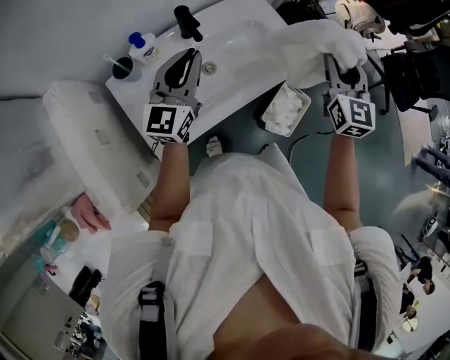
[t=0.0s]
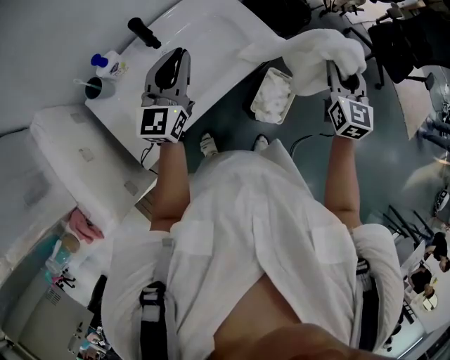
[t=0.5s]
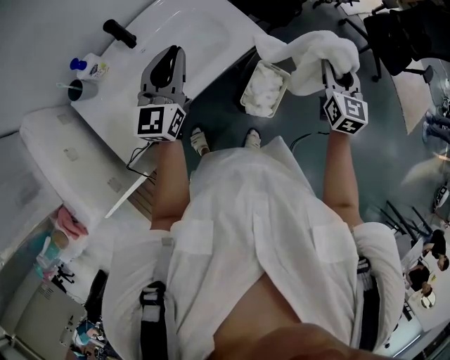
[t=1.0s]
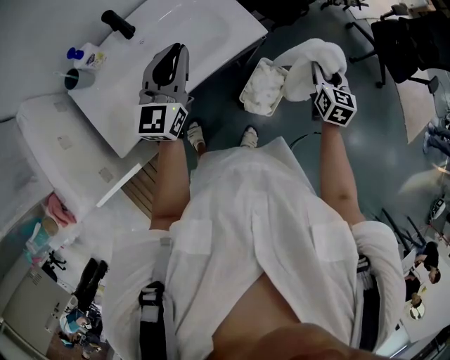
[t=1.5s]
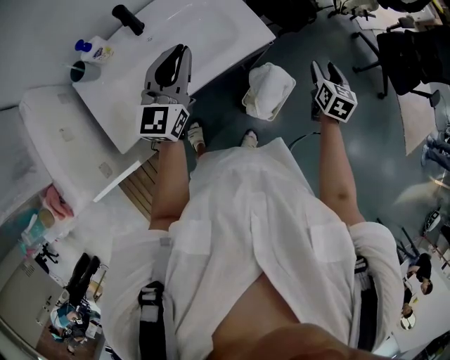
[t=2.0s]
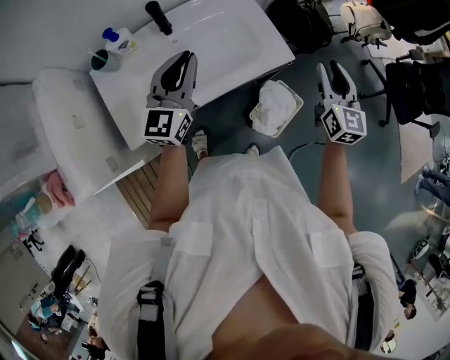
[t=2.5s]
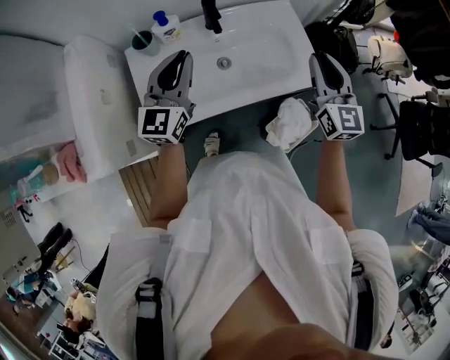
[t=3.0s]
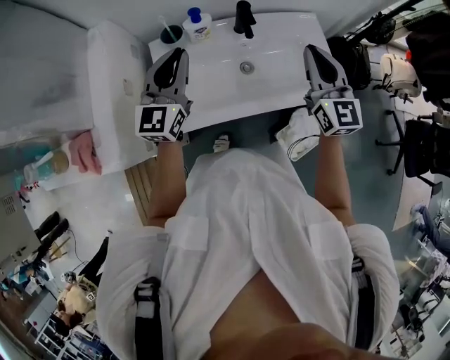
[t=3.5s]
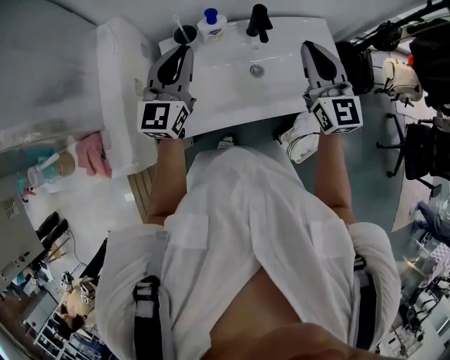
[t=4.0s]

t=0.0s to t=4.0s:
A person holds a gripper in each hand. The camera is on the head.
t=0.0s to t=2.0s: The right gripper heads to the right and downward, covering some 30 cm, and turns by some 40 degrees; the left gripper is displaced to the right by roughly 15 cm.
t=2.0s to t=4.0s: The right gripper changes place by approximately 50 cm, tilts its fingers about 40 degrees upward, and closes its fingers, while the left gripper moves about 35 cm, and rotates some 20 degrees.

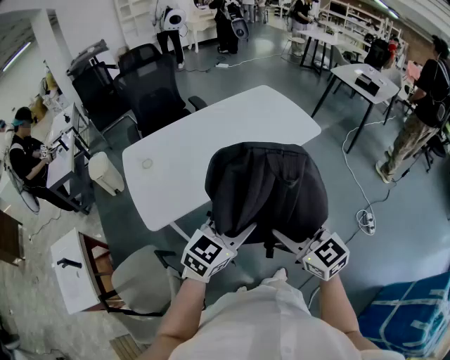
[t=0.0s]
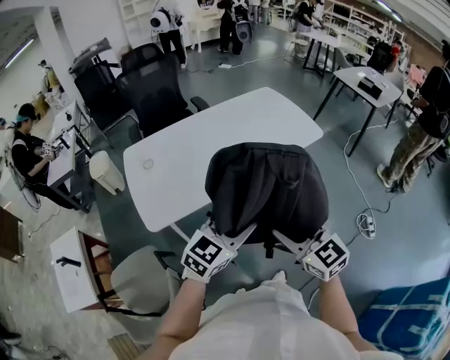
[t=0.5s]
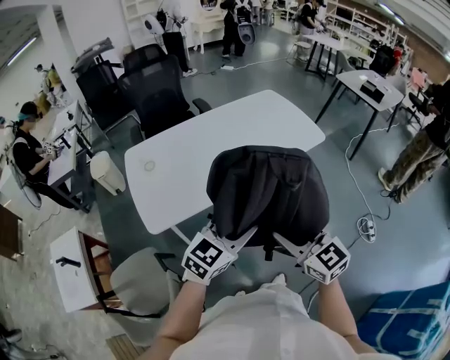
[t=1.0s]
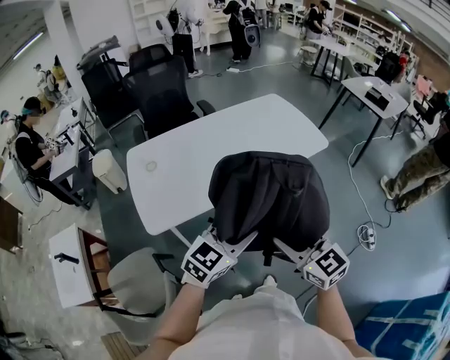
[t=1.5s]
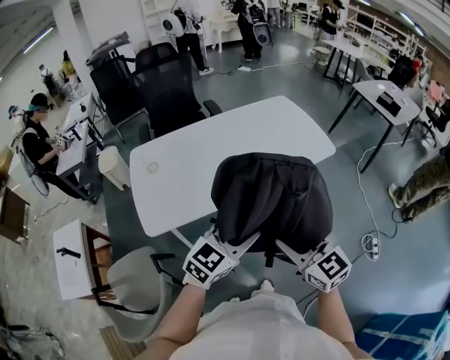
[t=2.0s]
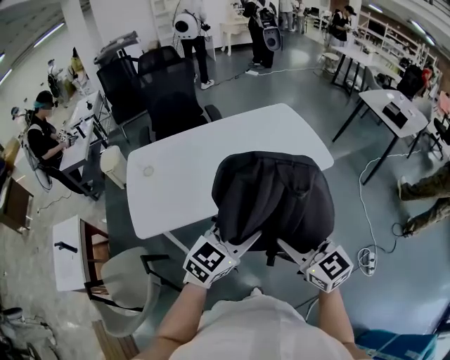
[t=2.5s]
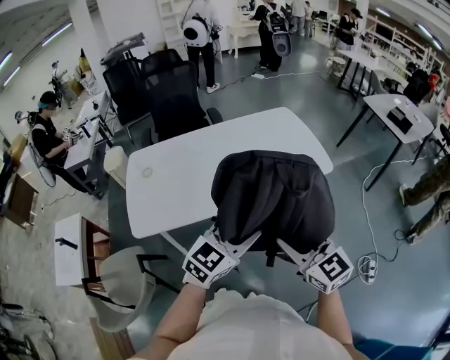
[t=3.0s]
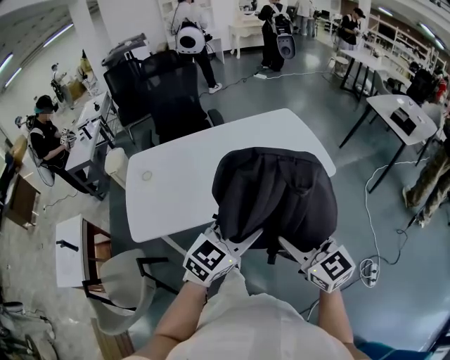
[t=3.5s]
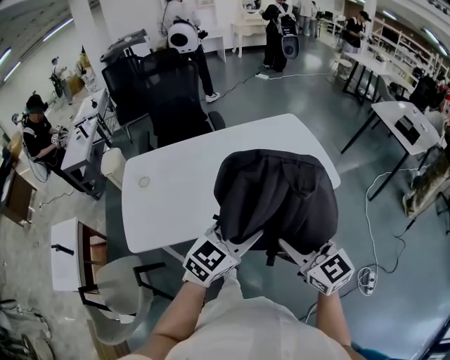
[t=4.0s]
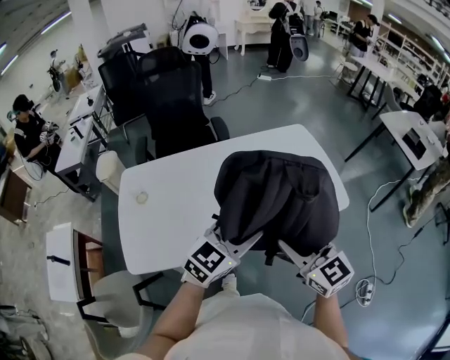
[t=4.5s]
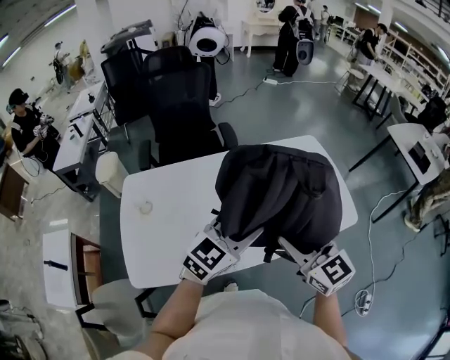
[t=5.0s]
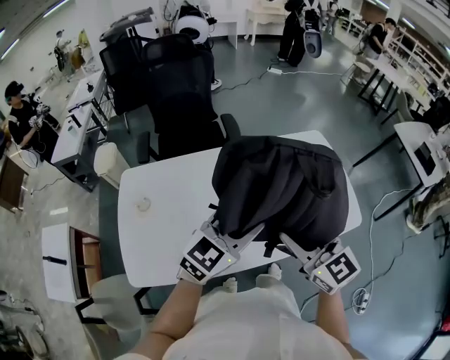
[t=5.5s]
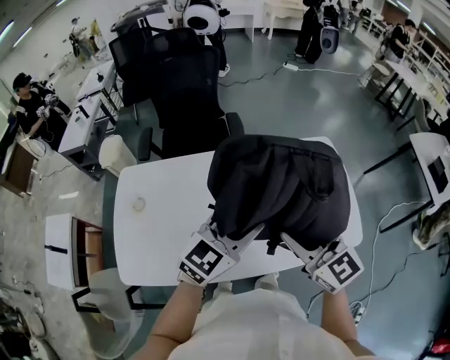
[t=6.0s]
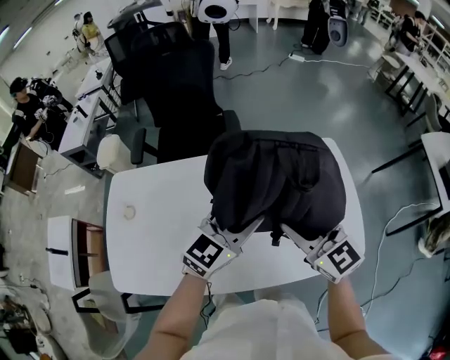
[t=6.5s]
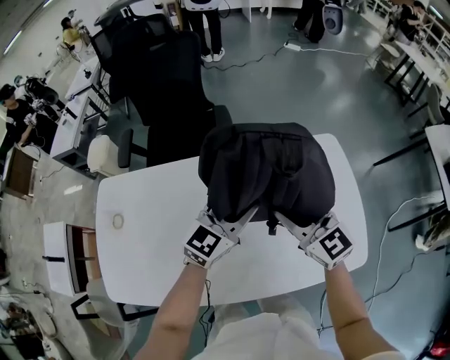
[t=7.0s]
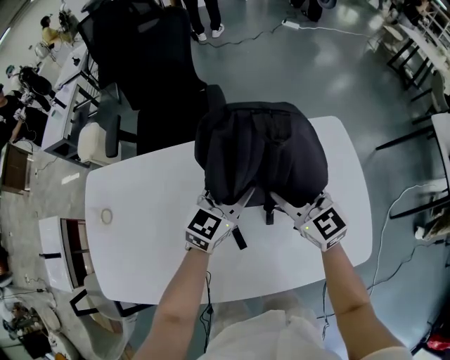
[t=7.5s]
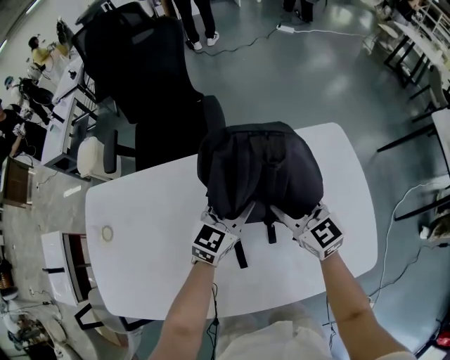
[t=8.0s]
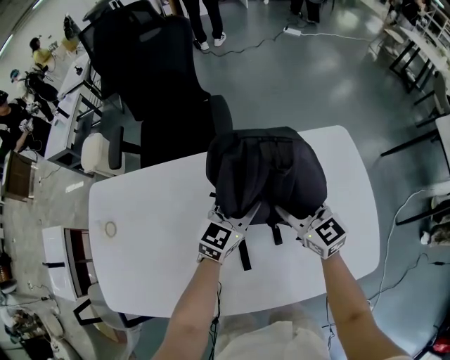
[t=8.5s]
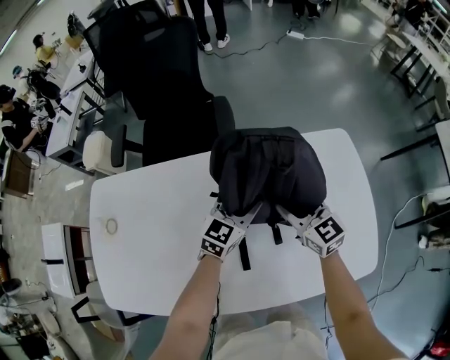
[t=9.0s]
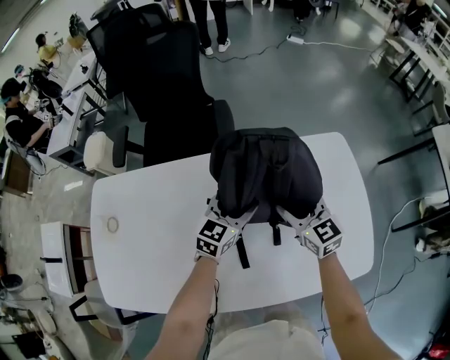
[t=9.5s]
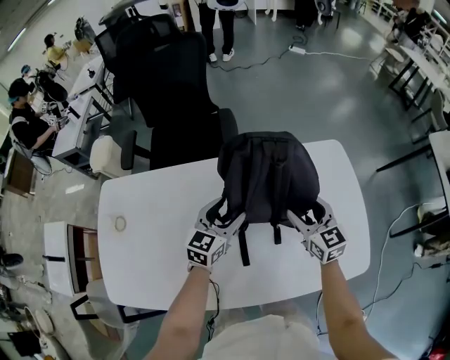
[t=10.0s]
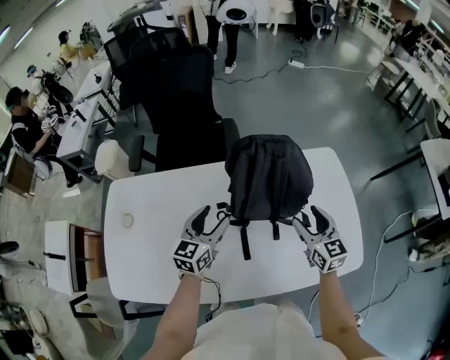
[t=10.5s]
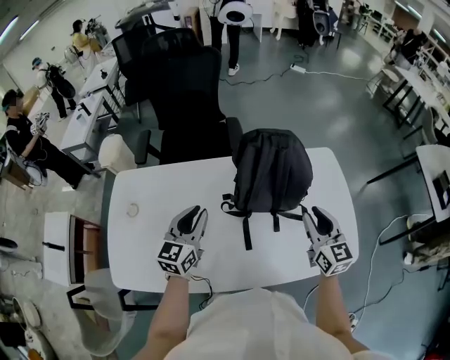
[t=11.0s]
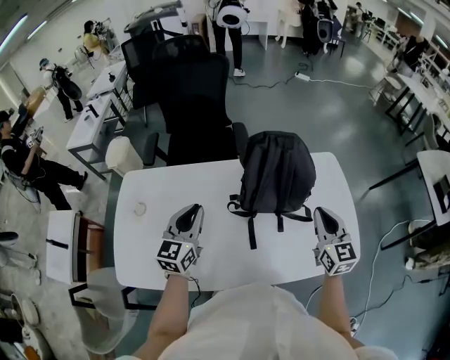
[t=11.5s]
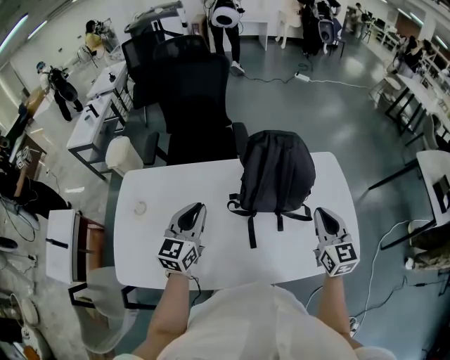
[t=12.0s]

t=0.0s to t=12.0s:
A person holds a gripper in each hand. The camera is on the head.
t=0.0s to t=2.0s: The two grippers go roughly 5 cm forward.
t=2.0s to t=4.0s: Both grippers move forward and to the right, some 20 cm.
t=4.0s to t=6.0s: The grippers both shift forward by approximately 30 cm.
t=6.0s to t=8.0s: The left gripper moves downward and forward, approximately 30 cm, while the right gripper heads forward and downward, covering approximately 30 cm.
t=8.0s to t=10.0s: The left gripper travels to the left by roughly 5 cm, and opens its fingers.
t=10.0s to t=12.0s: The right gripper shifts some 15 cm upward and backward, and closes. Meanwhile the left gripper goes some 20 cm to the left, upward and backward, and closes.

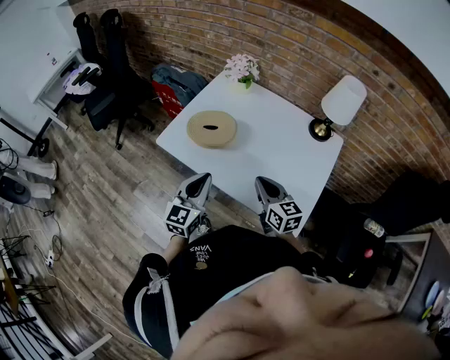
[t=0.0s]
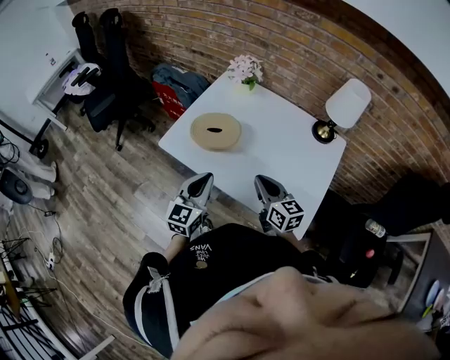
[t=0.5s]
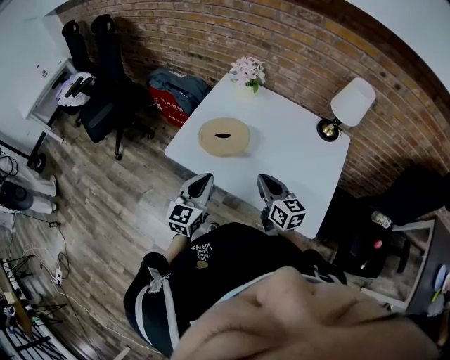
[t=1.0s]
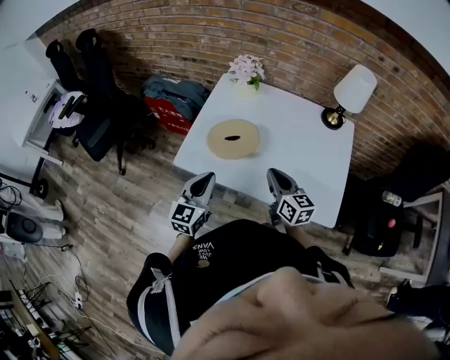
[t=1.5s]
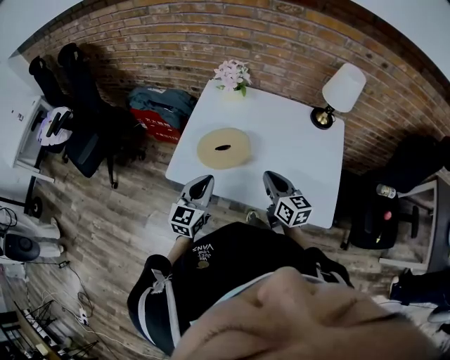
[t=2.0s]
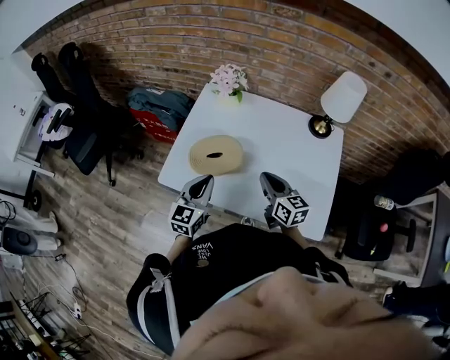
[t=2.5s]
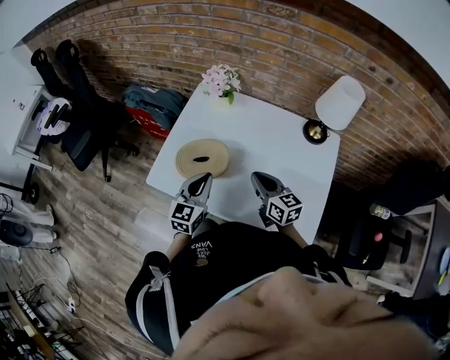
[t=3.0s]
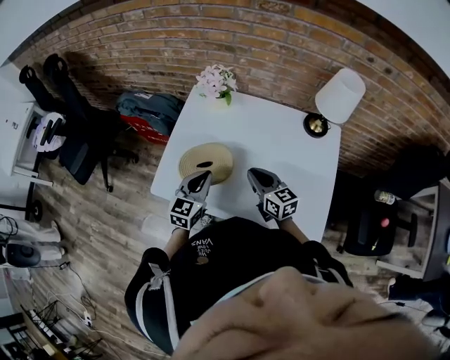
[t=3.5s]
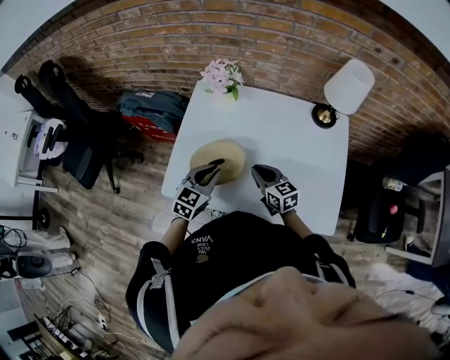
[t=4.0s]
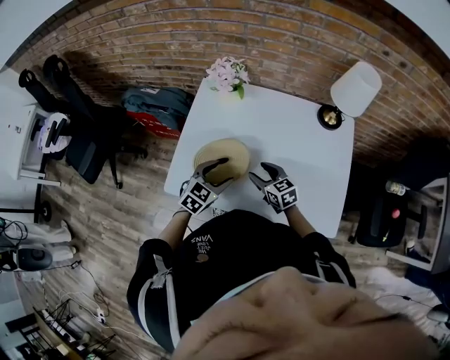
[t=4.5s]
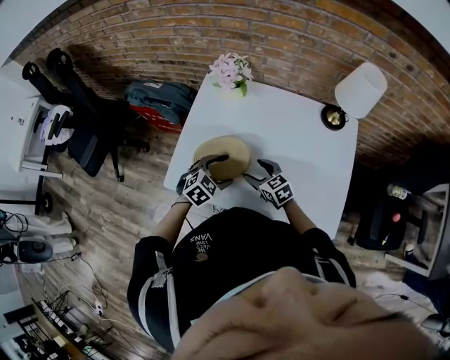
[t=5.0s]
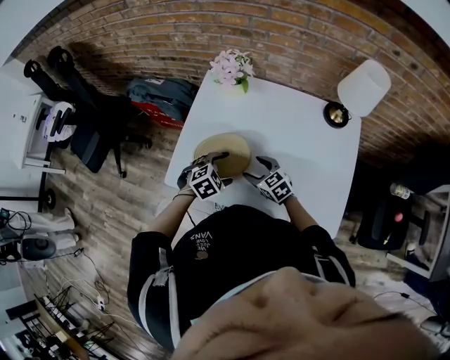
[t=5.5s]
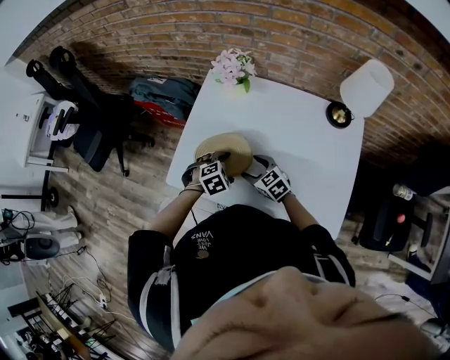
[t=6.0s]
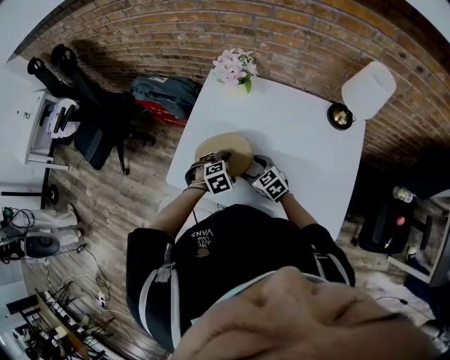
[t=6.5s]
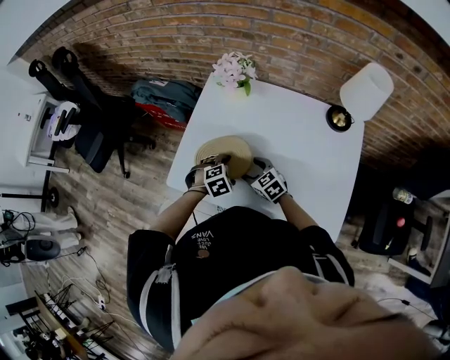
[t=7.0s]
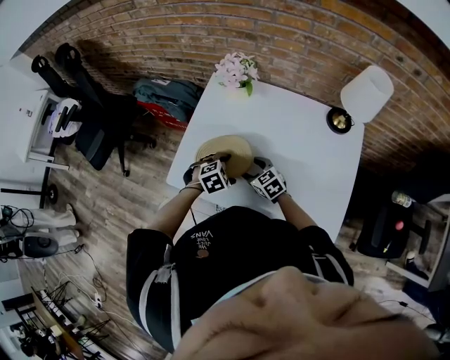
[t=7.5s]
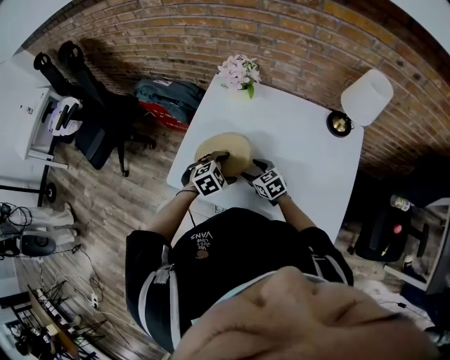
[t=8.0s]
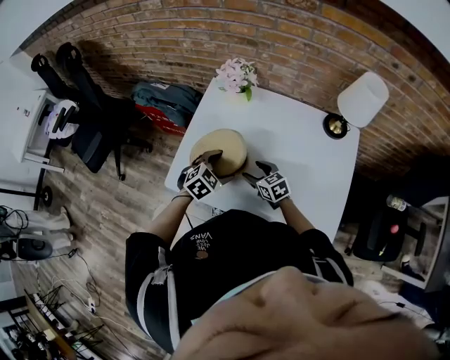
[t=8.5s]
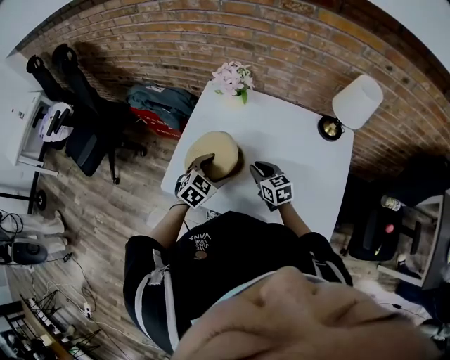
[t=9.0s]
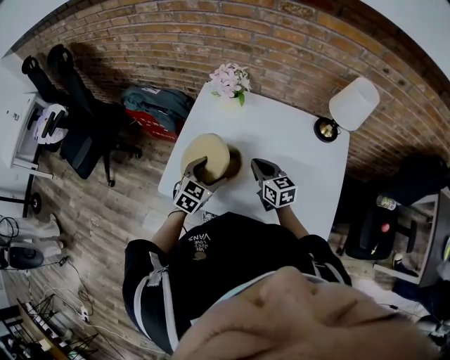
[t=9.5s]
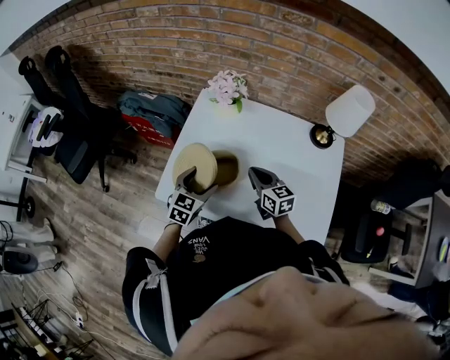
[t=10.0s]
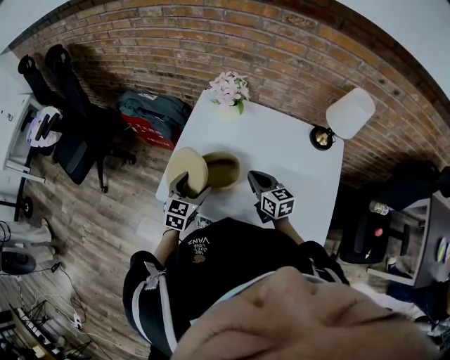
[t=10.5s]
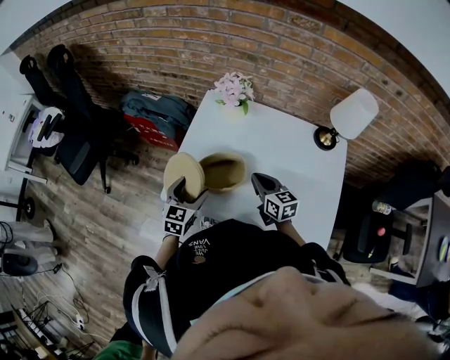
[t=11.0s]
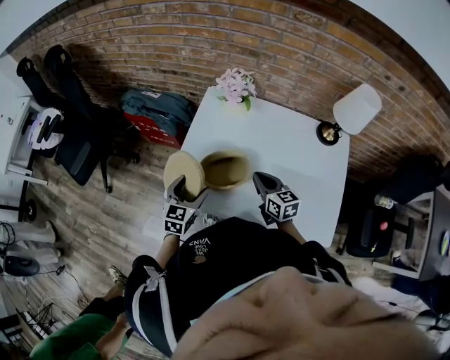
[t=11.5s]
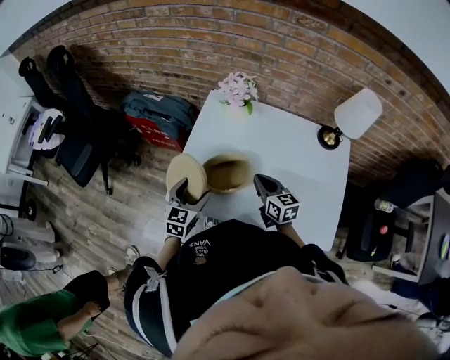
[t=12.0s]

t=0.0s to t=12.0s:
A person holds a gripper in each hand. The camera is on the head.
t=0.0s to t=2.0s: Both grippers travel together to the left and forward, approximately 15 cm.
t=2.0s to t=4.0s: The grippers both shift forward and downward by about 15 cm. The left gripper changes its angle by approximately 20 degrees.
t=4.0s to t=6.0s: The two grippers go about 10 cm downward. The right gripper turns by approximately 30 degrees, and opens, while the left gripper tilts its fingers roughly 40 degrees downward, and opens up.
t=6.0s to t=8.0s: The grippers make only small movements.
t=8.0s to t=10.0s: The right gripper moves upward, approximately 10 cm, rotates some 30 degrees, and closes its fingers; the left gripper travels to the left and upward by roughly 10 cm, and swivels roughly 40 degrees.
t=10.0s to t=12.0s: The left gripper goes some 10 cm to the left.
